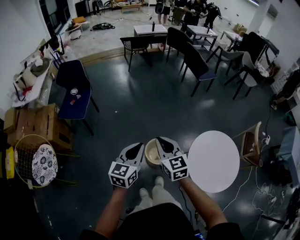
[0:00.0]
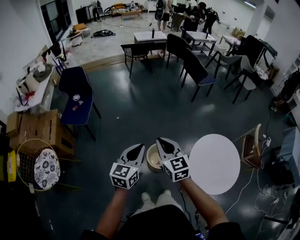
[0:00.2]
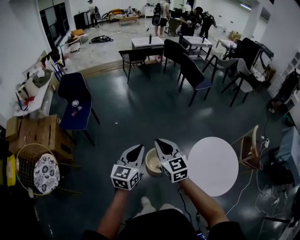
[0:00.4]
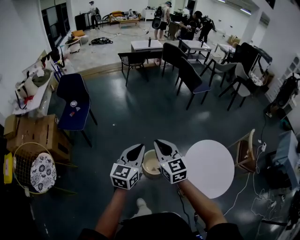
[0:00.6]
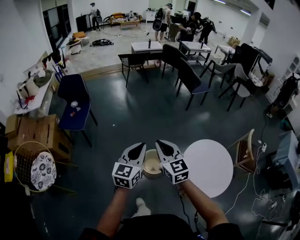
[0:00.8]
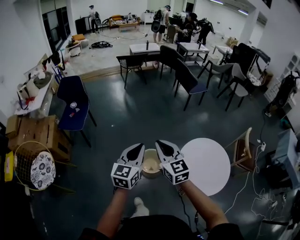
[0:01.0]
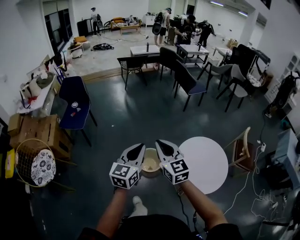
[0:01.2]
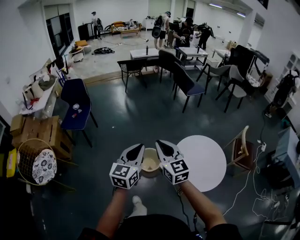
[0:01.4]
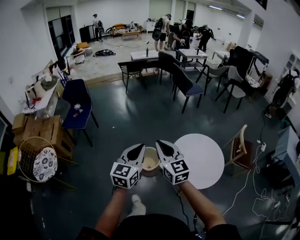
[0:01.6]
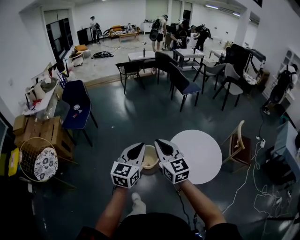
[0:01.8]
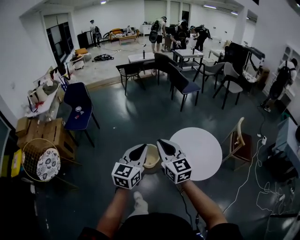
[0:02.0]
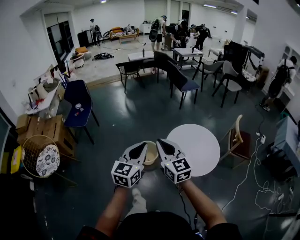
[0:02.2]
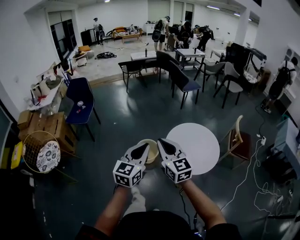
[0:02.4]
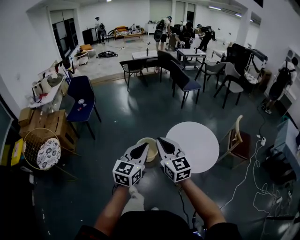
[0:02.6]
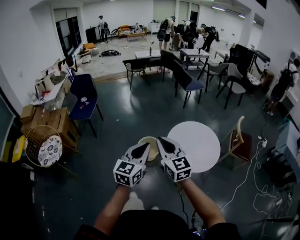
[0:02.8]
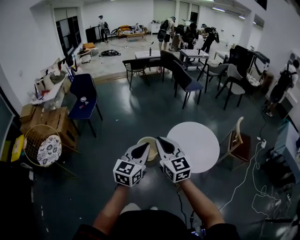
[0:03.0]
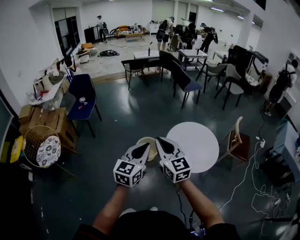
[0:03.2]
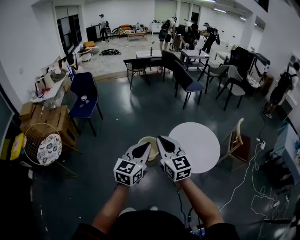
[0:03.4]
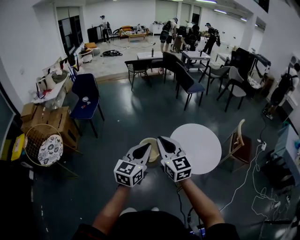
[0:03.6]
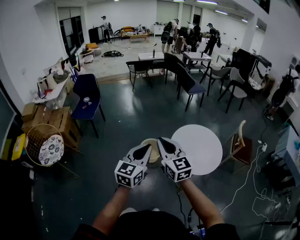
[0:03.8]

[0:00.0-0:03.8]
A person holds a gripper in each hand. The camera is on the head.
0:00.0 to 0:01.2: The two grippers go about 20 cm backward, upward and to the right.
0:01.2 to 0:02.6: The grippers both shift backward and to the right by some 30 cm.
0:02.6 to 0:03.8: The grippers stay close to where they were, moving slightly.

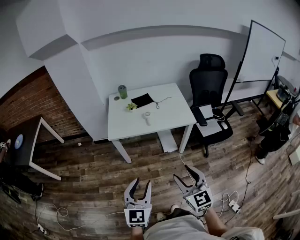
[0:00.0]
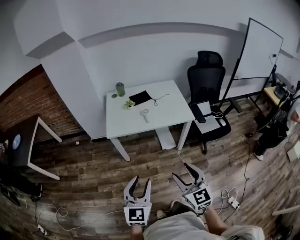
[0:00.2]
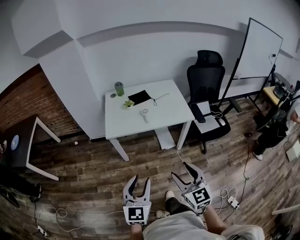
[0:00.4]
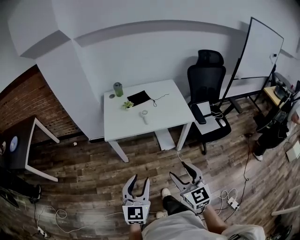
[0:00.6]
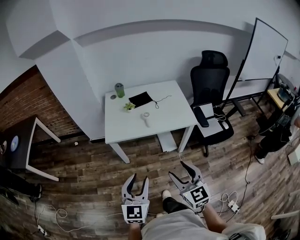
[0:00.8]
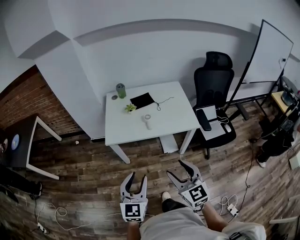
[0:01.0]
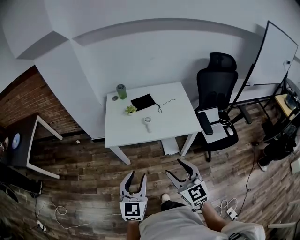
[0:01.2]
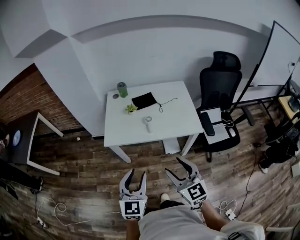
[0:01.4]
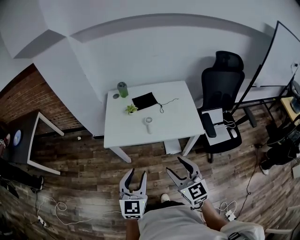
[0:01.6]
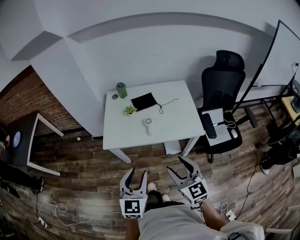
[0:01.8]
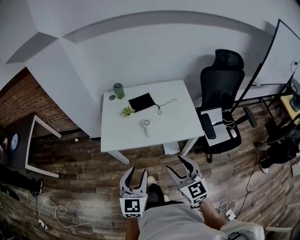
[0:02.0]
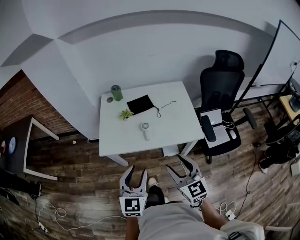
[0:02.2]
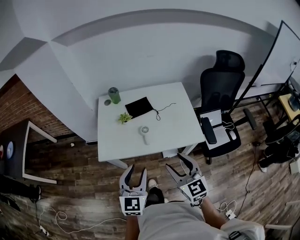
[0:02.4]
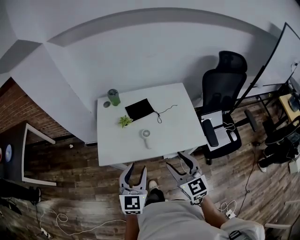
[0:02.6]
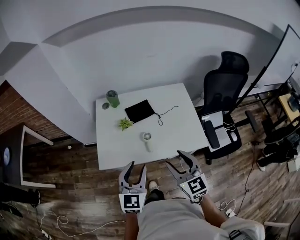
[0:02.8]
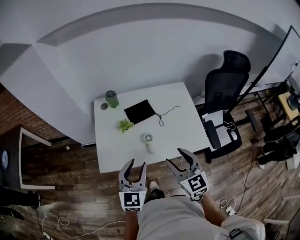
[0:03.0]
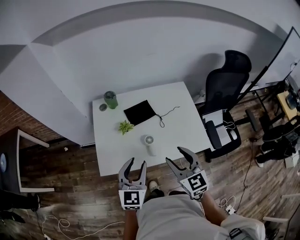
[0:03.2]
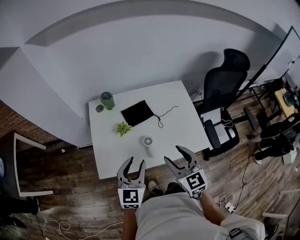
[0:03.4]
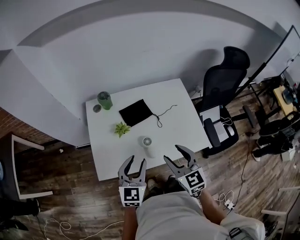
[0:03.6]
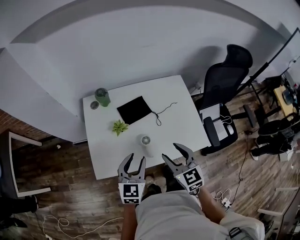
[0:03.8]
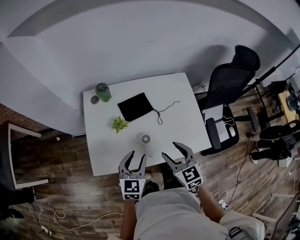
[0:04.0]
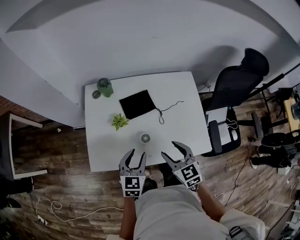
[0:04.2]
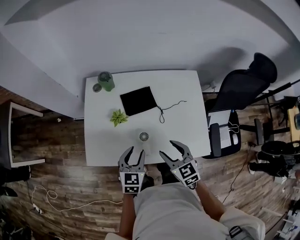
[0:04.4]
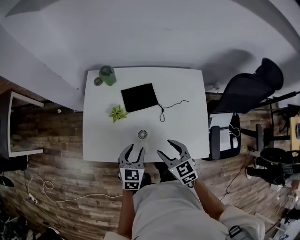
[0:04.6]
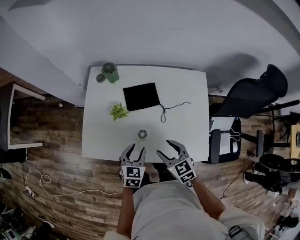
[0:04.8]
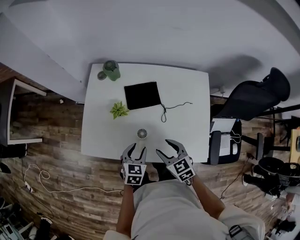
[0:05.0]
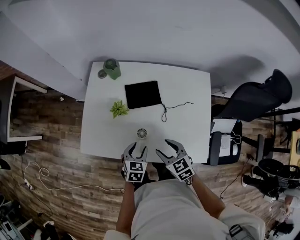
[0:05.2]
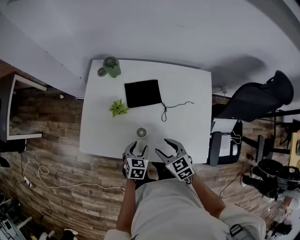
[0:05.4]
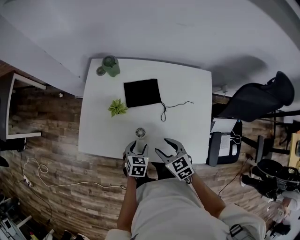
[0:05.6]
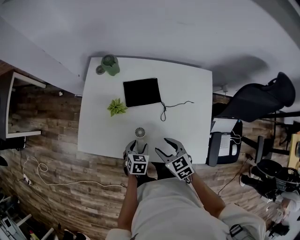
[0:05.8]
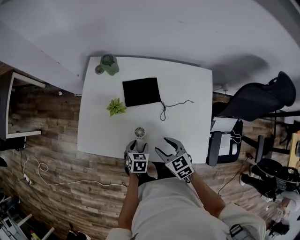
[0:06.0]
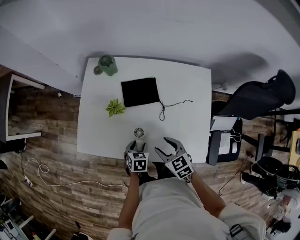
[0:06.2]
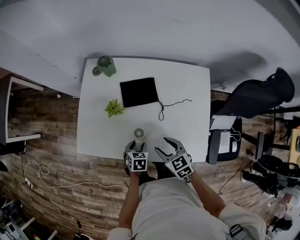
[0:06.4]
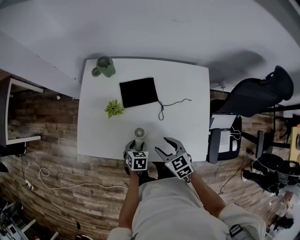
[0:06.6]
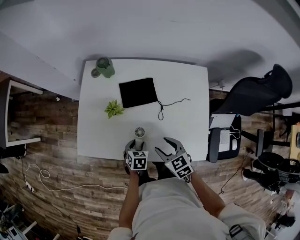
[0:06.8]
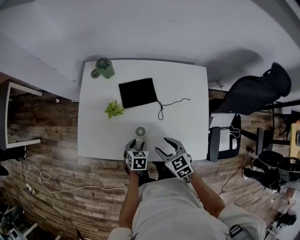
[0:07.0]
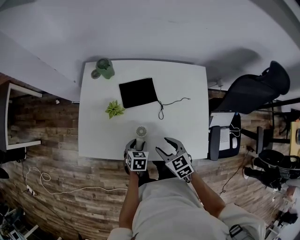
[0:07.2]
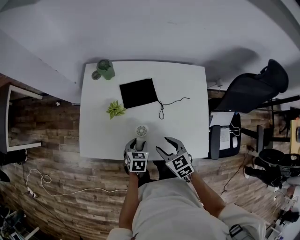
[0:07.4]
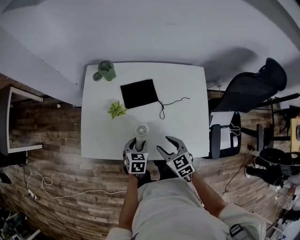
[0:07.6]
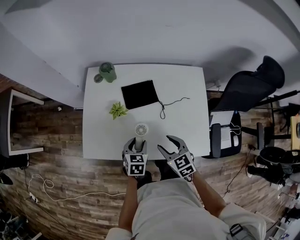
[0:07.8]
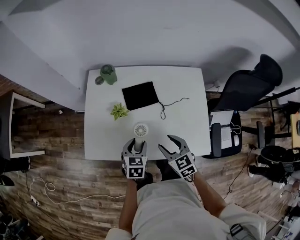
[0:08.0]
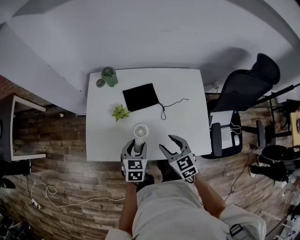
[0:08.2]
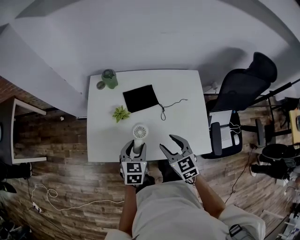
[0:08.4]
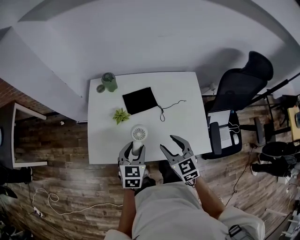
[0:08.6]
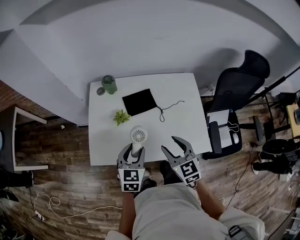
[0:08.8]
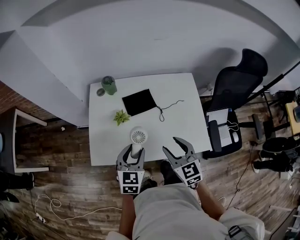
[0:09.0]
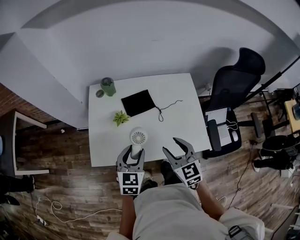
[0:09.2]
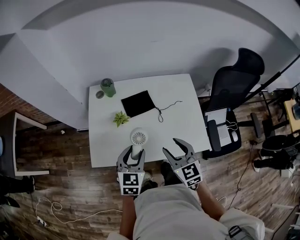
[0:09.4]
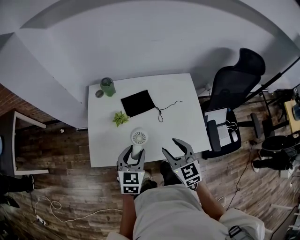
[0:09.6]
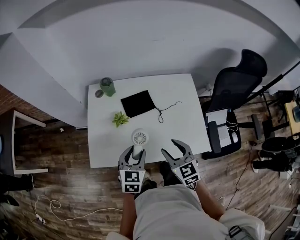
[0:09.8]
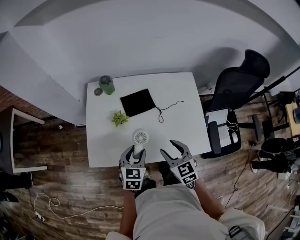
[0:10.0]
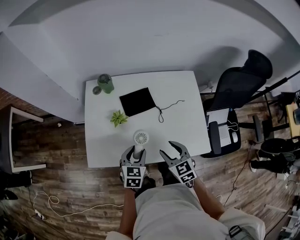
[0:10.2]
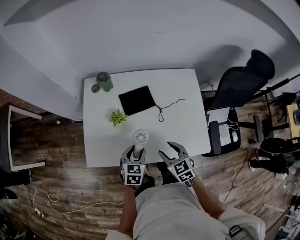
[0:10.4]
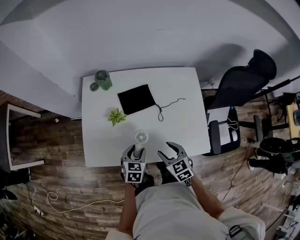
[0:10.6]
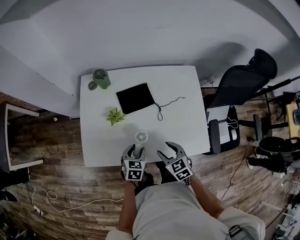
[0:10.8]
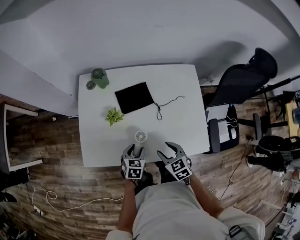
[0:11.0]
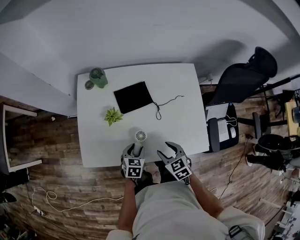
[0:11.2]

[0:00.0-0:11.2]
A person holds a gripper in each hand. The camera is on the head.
0:00.0 to 0:01.6: Both grippers travel together forward, some 20 cm.
0:01.6 to 0:03.2: The two grippers go about 25 cm forward.
0:03.2 to 0:04.8: Both grippers travel together downward and forward, about 20 cm. The left gripper rotates approximately 30 degrees. The right gripper rotates about 30 degrees.
0:04.8 to 0:06.4: The left gripper travels downward by some 15 cm, and rotates some 30 degrees. The right gripper is displaced downward by roughly 5 cm.
0:06.4 to 0:08.0: The left gripper heads upward, covering about 10 cm, and turns by some 20 degrees. The right gripper moves upward, about 5 cm.
0:08.0 to 0:09.6: The two grippers go about 10 cm upward.
0:09.6 to 0:11.2: The two grippers go some 20 cm downward. The right gripper swivels about 20 degrees. The left gripper turns by roughly 20 degrees.

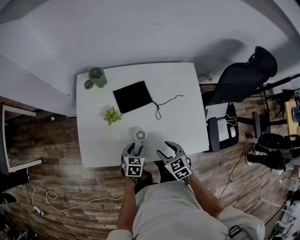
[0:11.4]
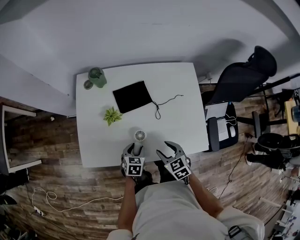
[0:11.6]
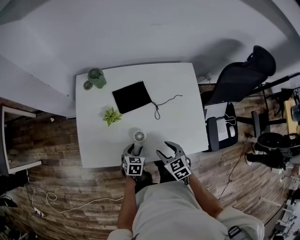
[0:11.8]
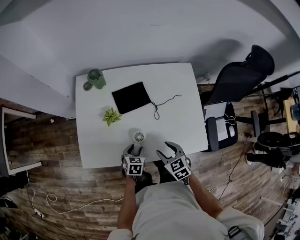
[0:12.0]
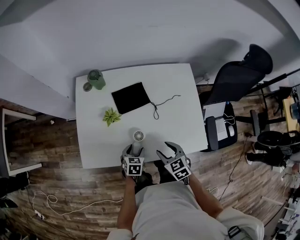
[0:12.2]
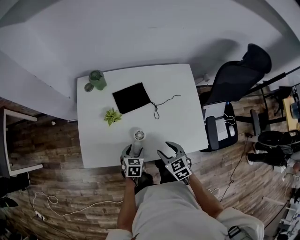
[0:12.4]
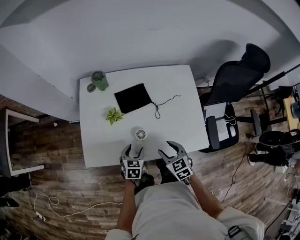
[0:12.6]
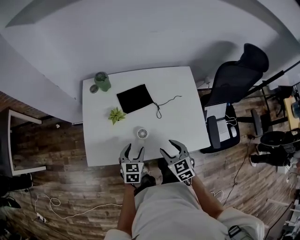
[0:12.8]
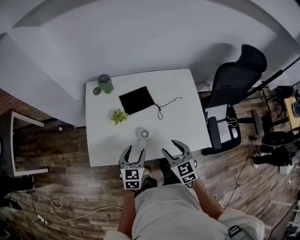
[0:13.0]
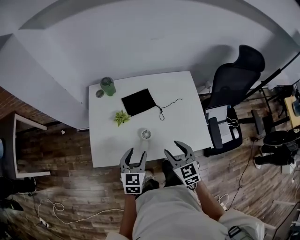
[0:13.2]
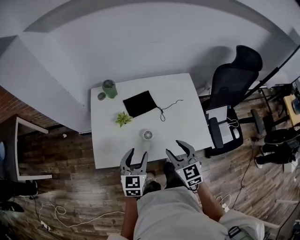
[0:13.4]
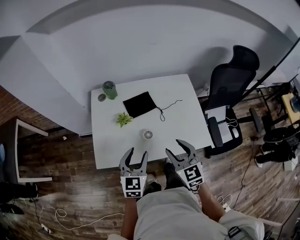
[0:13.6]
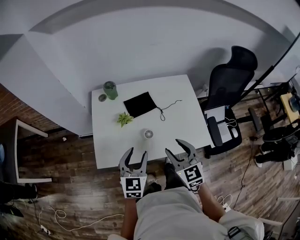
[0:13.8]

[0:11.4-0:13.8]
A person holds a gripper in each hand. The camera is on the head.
0:11.4 to 0:12.6: The grippers stay close to where they were, moving slightly.
0:12.6 to 0:13.8: Both grippers move upward, some 20 cm. The left gripper changes its angle by roughly 30 degrees; the right gripper rotates about 20 degrees.

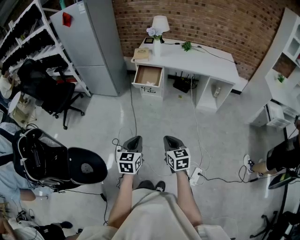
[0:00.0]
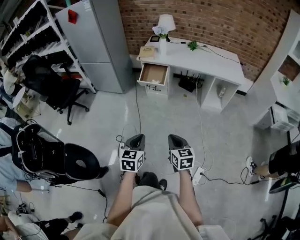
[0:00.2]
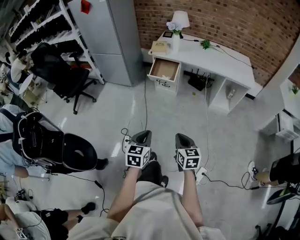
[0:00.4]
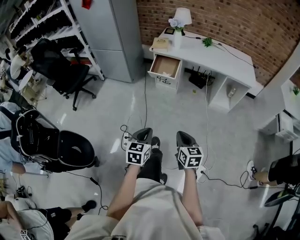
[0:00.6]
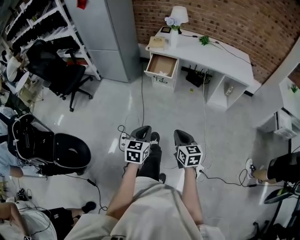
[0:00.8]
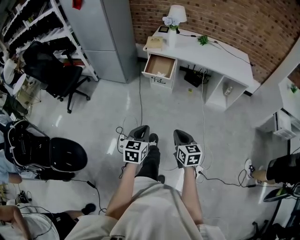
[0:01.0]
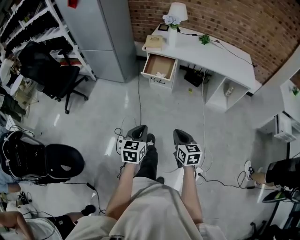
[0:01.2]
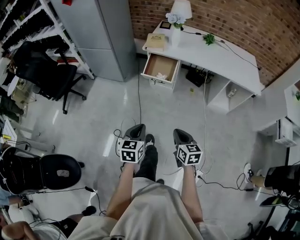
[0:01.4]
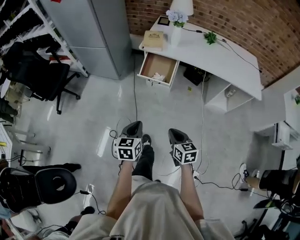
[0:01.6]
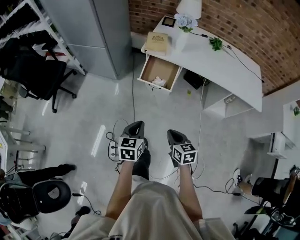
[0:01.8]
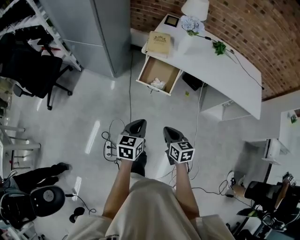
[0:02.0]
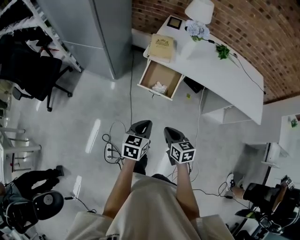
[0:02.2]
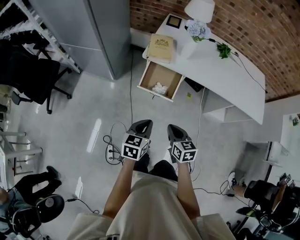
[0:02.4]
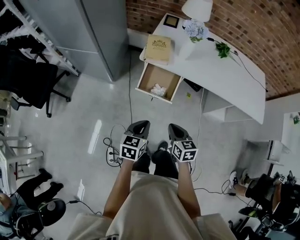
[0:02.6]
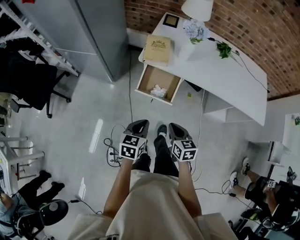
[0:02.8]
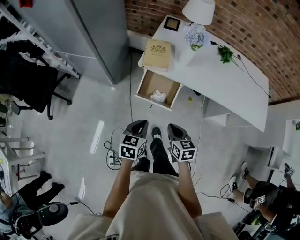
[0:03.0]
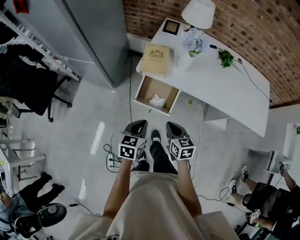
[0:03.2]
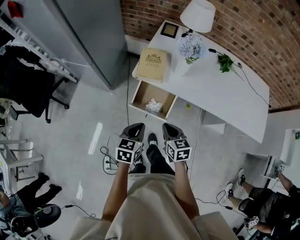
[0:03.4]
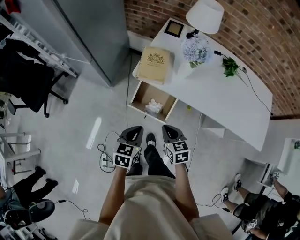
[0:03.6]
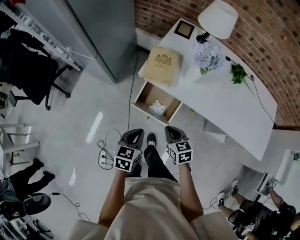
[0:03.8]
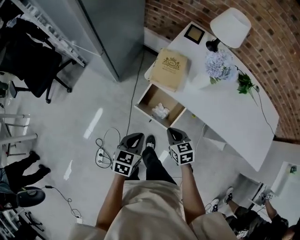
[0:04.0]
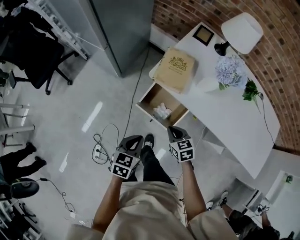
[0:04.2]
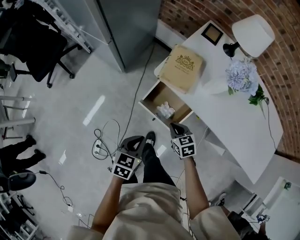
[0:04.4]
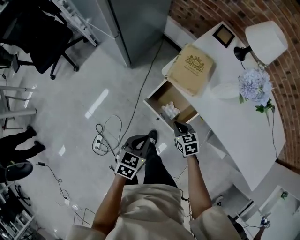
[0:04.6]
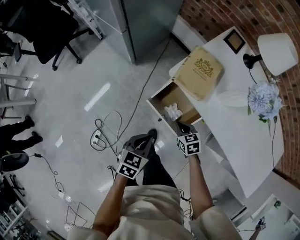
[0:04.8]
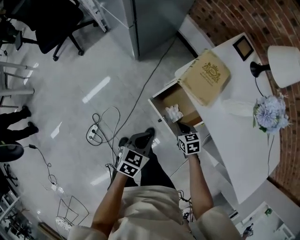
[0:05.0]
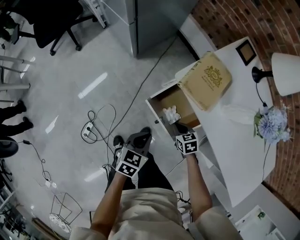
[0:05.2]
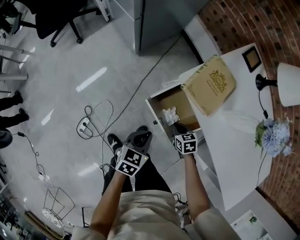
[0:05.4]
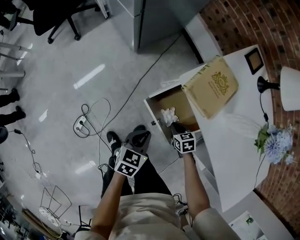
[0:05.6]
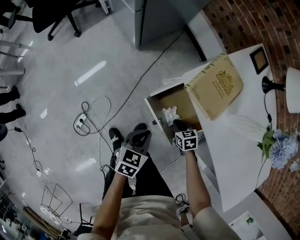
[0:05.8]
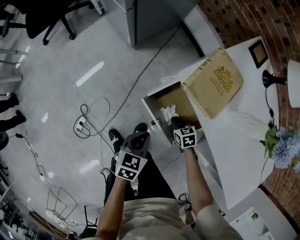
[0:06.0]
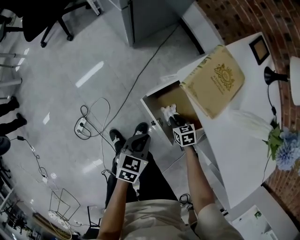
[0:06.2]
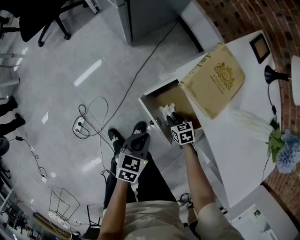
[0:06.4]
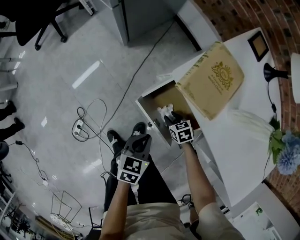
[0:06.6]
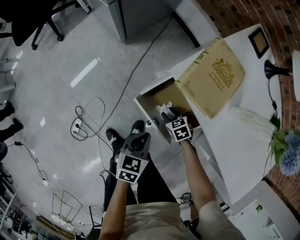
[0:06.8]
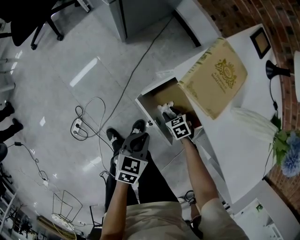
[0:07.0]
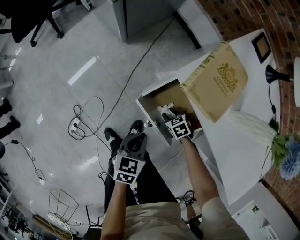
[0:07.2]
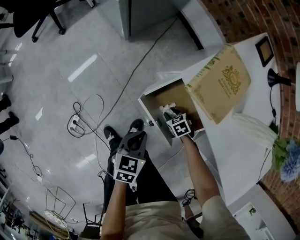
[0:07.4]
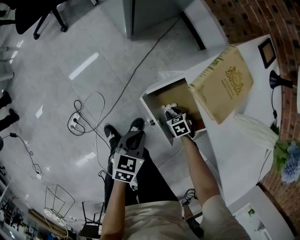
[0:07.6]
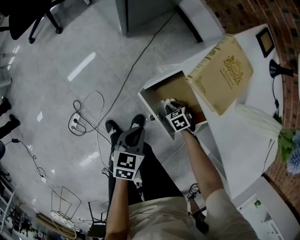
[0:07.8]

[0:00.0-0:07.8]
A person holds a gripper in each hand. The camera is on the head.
0:00.0 to 0:01.6: The grippers both shift forward by roughly 25 cm.
0:01.6 to 0:03.2: Both grippers travel together forward, roughly 35 cm.
0:03.2 to 0:04.6: The left gripper heads downward, covering approximately 10 cm; the right gripper goes roughly 25 cm downward and forward, and turns by about 40 degrees.
0:04.6 to 0:06.2: The right gripper travels downward by some 20 cm. The left gripper goes some 10 cm downward.
0:06.2 to 0:07.8: The right gripper travels downward by some 5 cm.
